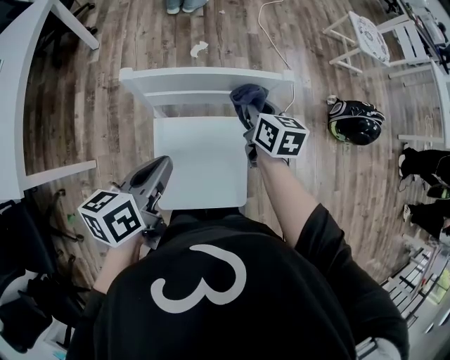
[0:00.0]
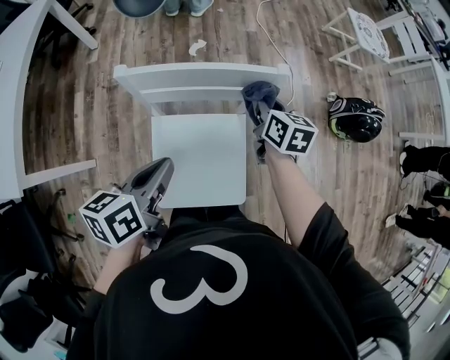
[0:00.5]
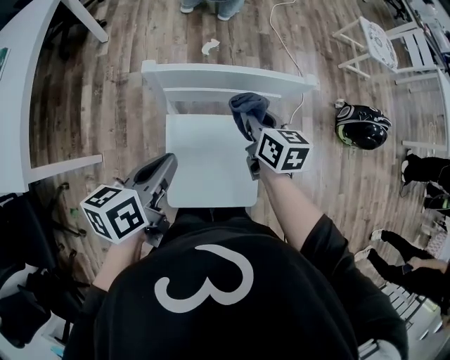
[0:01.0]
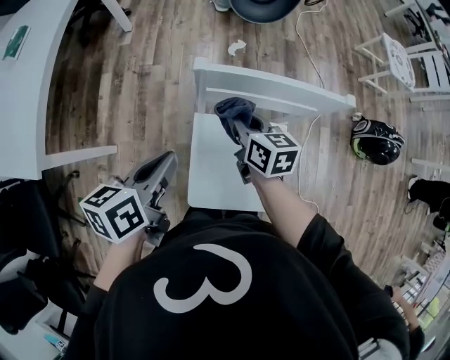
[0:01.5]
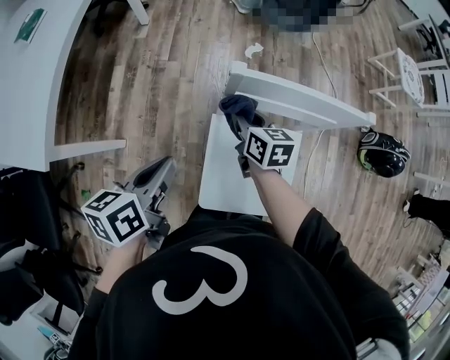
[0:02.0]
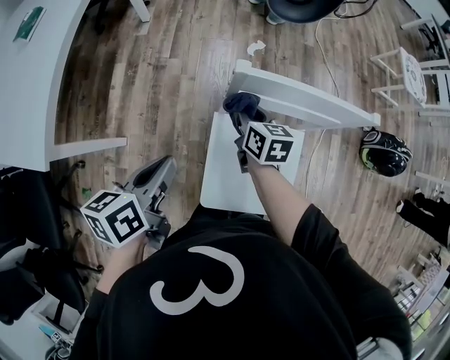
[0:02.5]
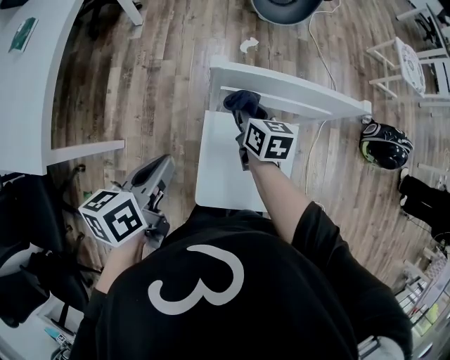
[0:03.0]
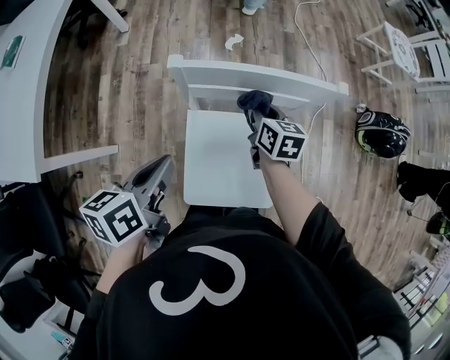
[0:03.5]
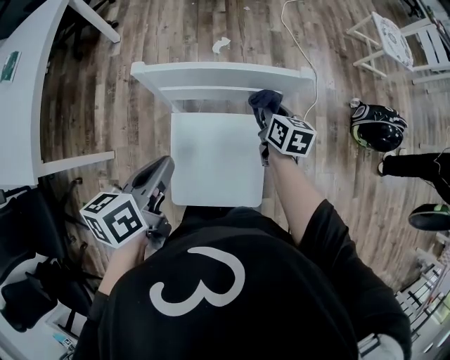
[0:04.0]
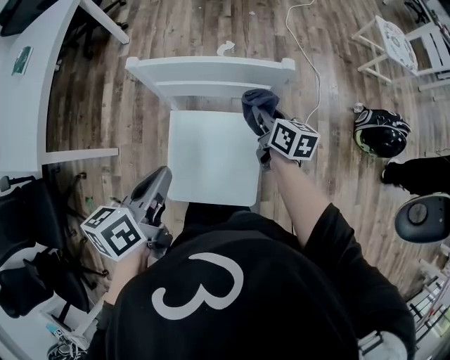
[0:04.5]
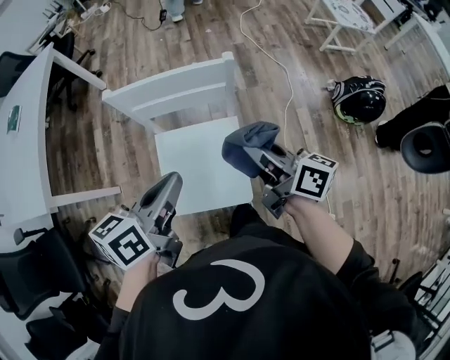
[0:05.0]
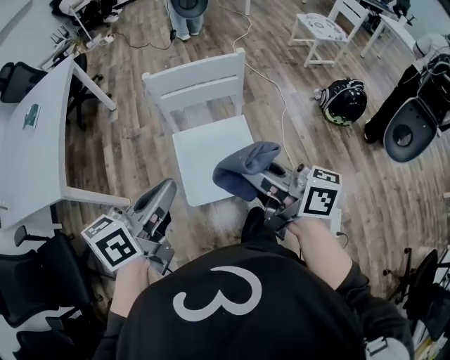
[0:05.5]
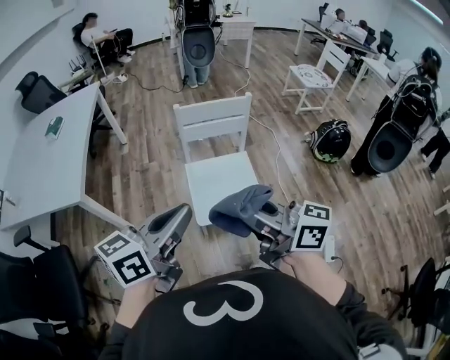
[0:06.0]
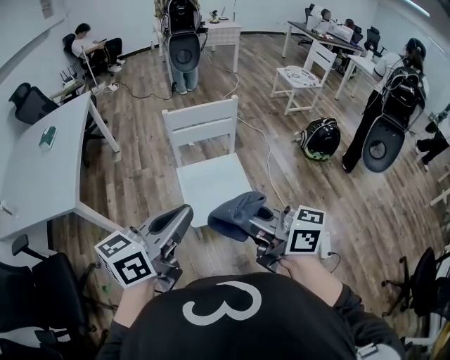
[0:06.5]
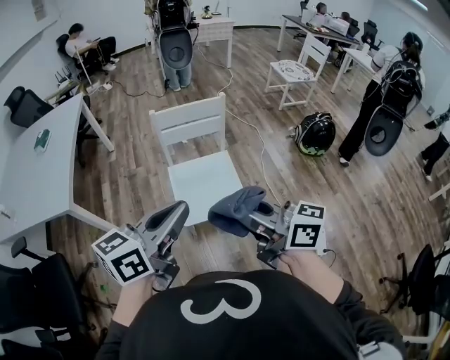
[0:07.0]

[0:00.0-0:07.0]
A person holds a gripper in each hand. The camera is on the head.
0:00.0 to 0:02.0: Both grippers move to the left, some 20 cm.
0:02.0 to 0:03.5: The left gripper goes about 10 cm to the right, while the right gripper shifts approximately 15 cm to the right.
0:03.5 to 0:05.0: The left gripper moves to the right and upward, roughly 20 cm. Meanwhile the right gripper moves upward, backward and to the right, roughly 30 cm, and changes its angle by approximately 40 degrees.
0:05.0 to 0:07.0: The right gripper travels backward, upward and to the left by roughly 40 cm, and changes its angle by roughly 20 degrees. Meanwhile the left gripper shifts some 35 cm backward and upward, and swivels about 30 degrees.

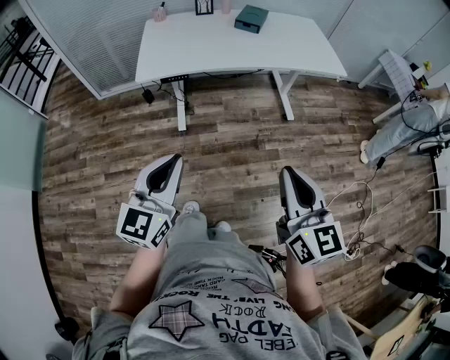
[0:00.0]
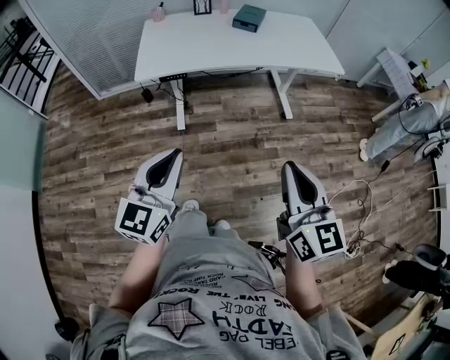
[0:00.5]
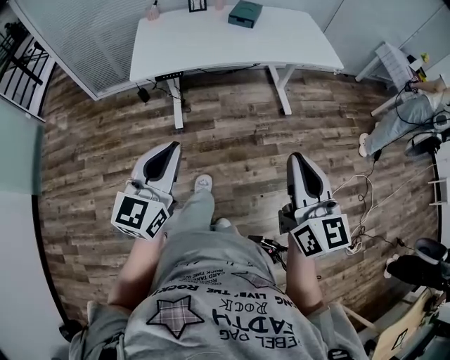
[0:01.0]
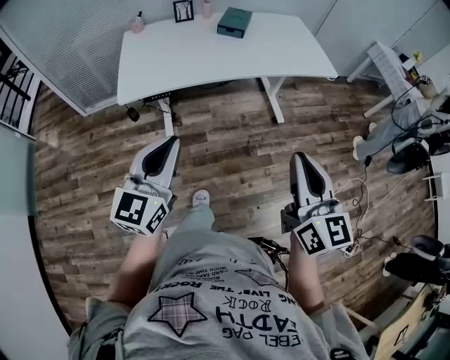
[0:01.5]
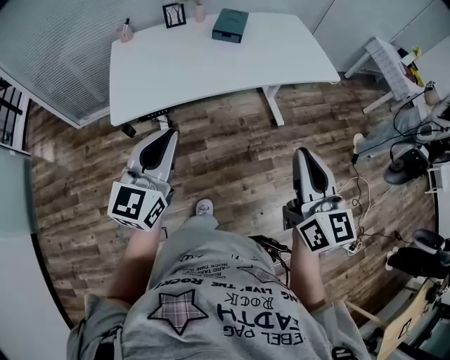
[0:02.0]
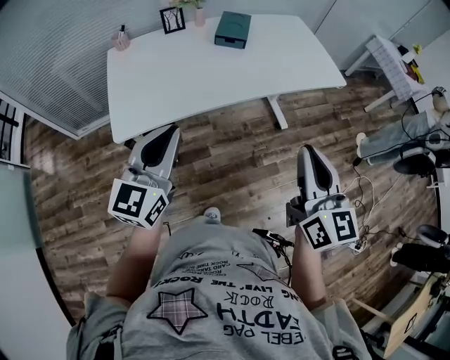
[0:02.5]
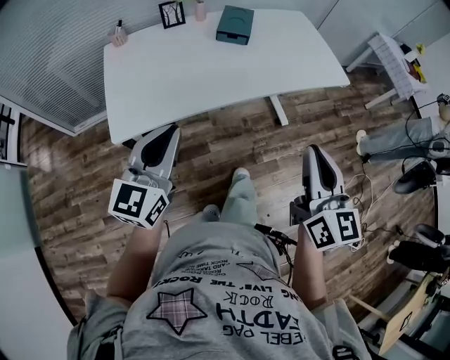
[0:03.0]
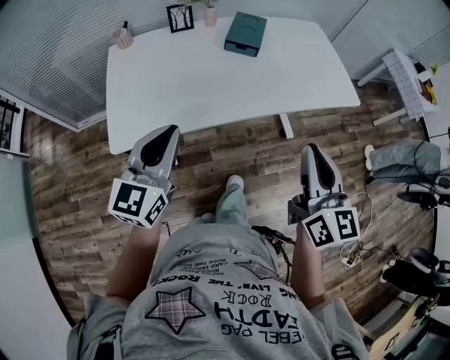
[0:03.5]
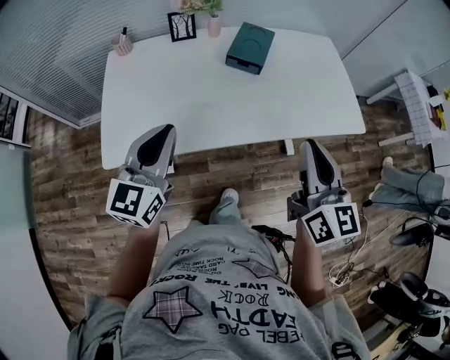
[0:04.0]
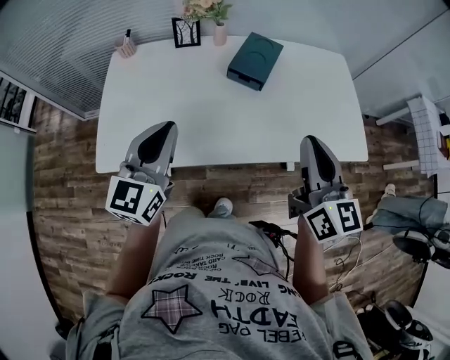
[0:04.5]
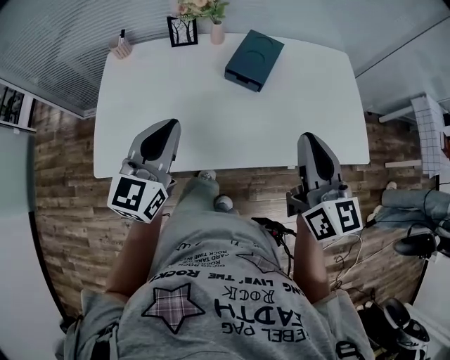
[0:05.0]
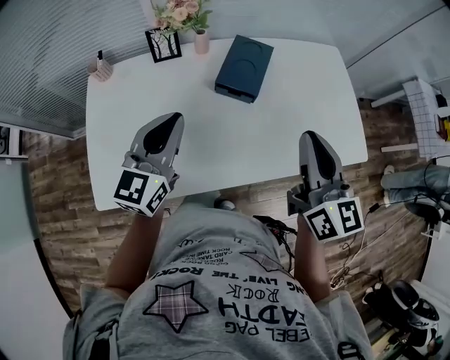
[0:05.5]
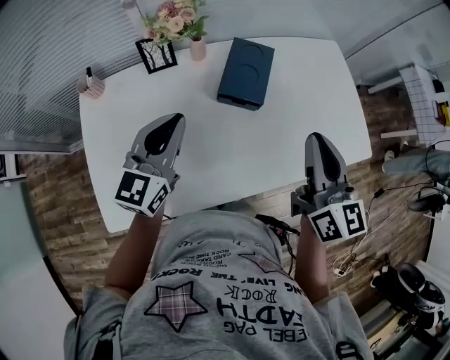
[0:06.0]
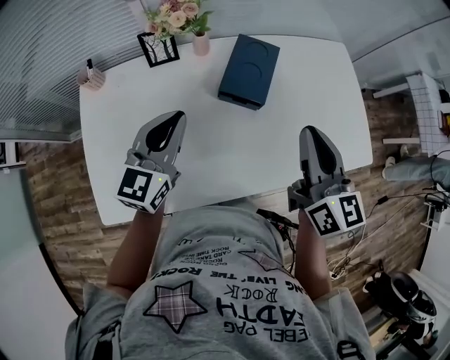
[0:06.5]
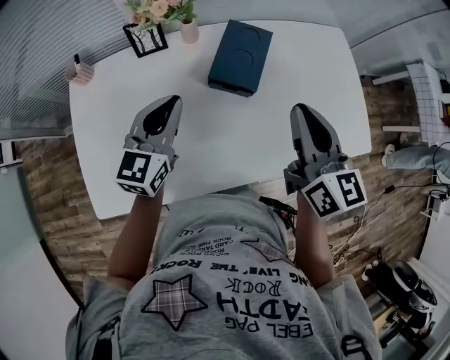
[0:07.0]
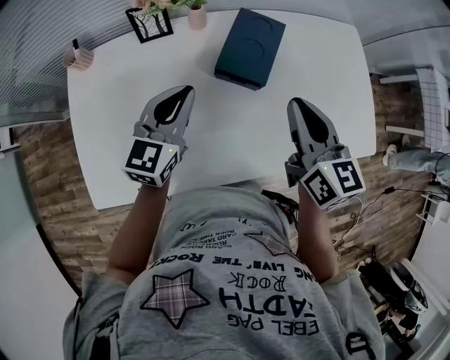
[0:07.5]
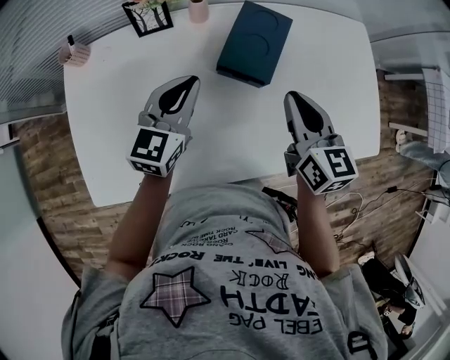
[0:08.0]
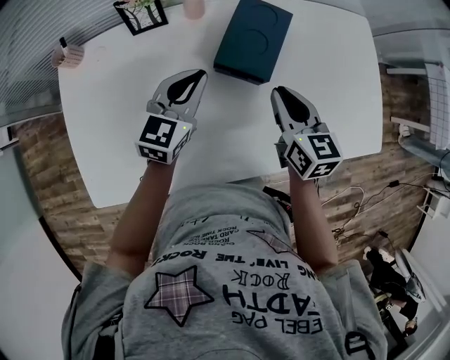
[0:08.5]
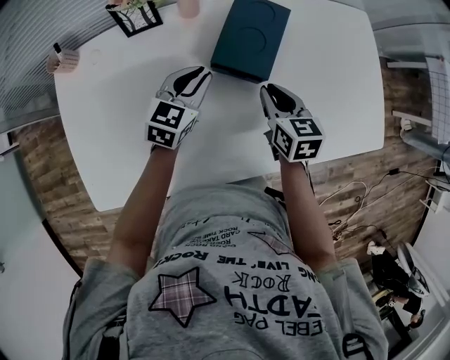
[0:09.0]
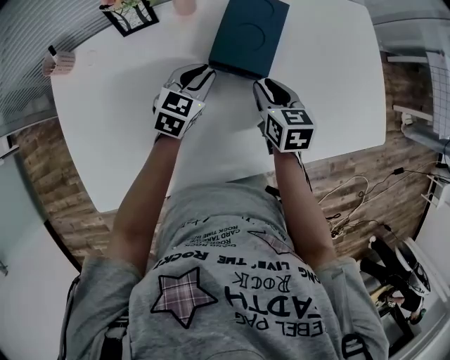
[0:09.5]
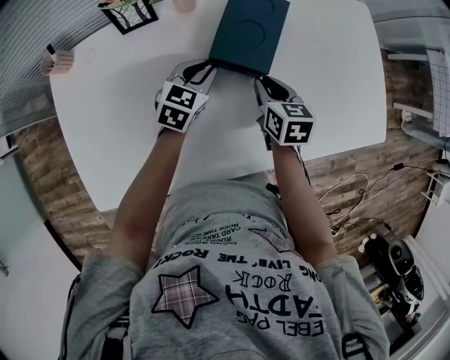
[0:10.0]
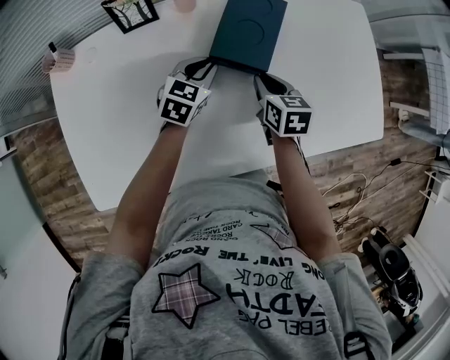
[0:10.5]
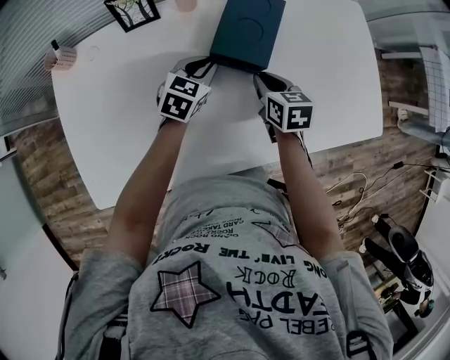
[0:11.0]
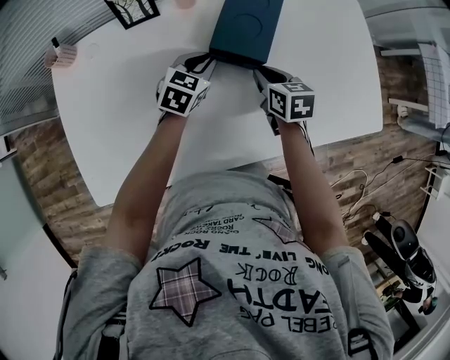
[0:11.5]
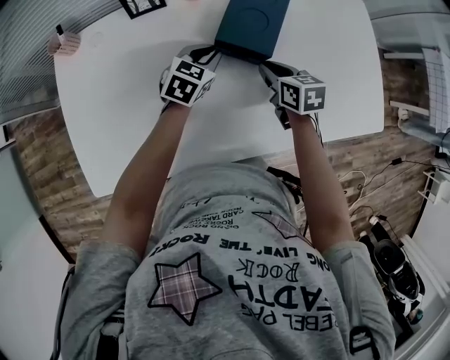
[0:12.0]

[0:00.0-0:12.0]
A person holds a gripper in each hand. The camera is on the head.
0:00.0 to 0:02.0: Both grippers move forward, about 20 cm.
0:02.0 to 0:04.0: Both grippers travel together forward, roughly 30 cm.
0:04.0 to 0:06.0: Both grippers travel together forward, roughly 25 cm.
0:06.0 to 0:08.0: Both grippers move downward and forward, roughly 15 cm. The right gripper changes its angle by about 20 degrees.
0:08.0 to 0:10.0: Both grippers travel together downward, some 15 cm. The left gripper changes its angle by about 20 degrees; the right gripper swivels roughly 20 degrees.
0:10.0 to 0:12.0: There are only small adjustments of the grippers.

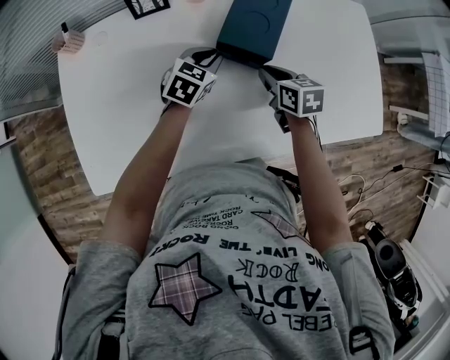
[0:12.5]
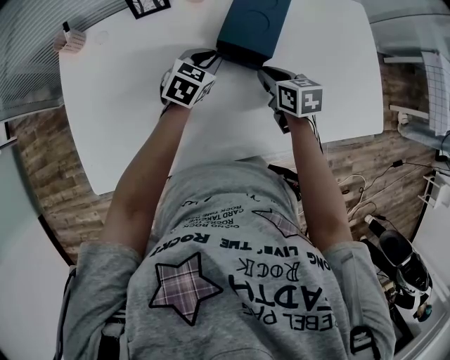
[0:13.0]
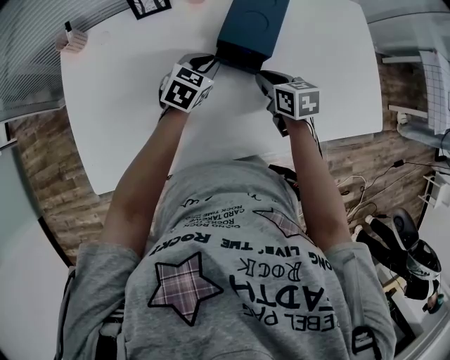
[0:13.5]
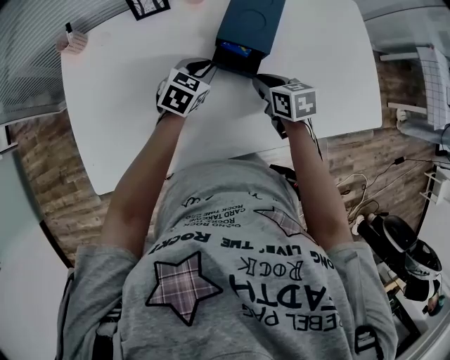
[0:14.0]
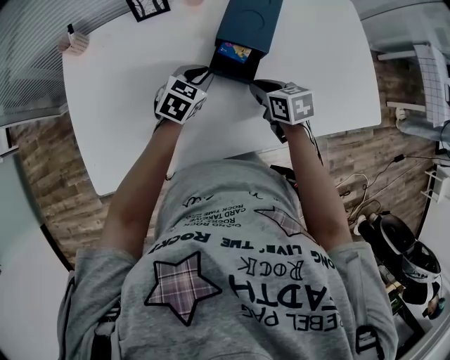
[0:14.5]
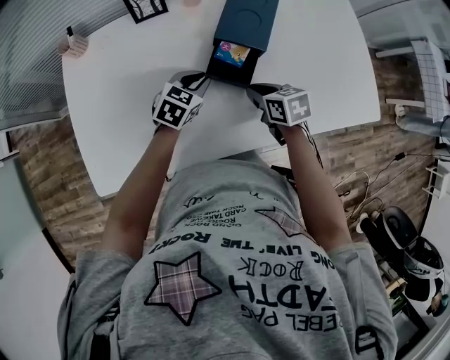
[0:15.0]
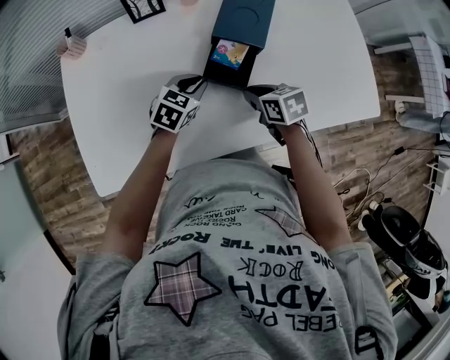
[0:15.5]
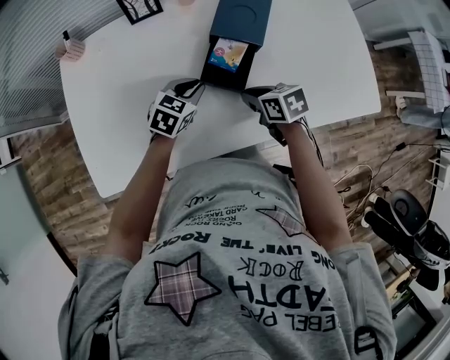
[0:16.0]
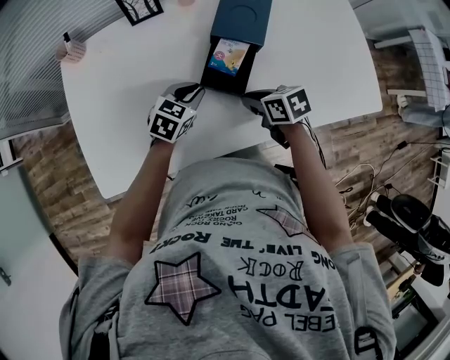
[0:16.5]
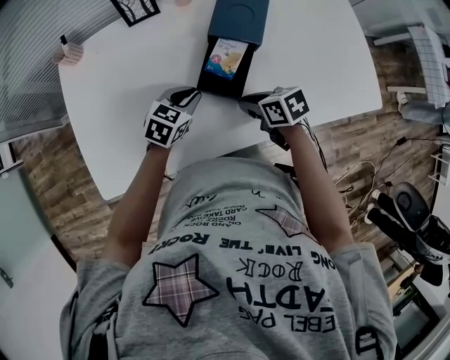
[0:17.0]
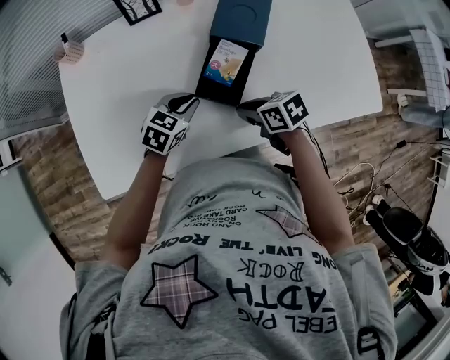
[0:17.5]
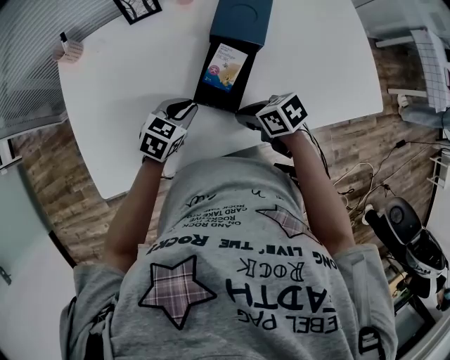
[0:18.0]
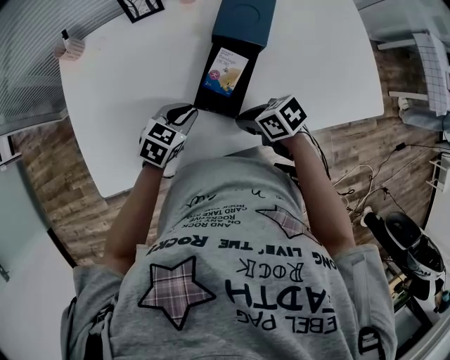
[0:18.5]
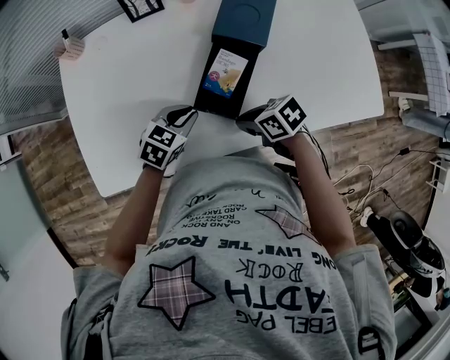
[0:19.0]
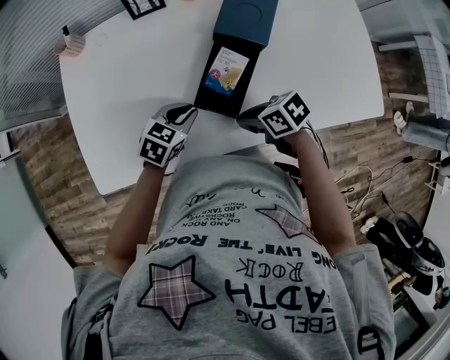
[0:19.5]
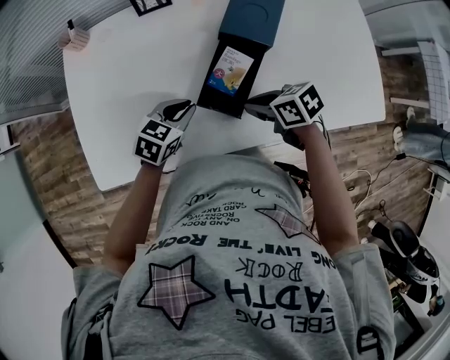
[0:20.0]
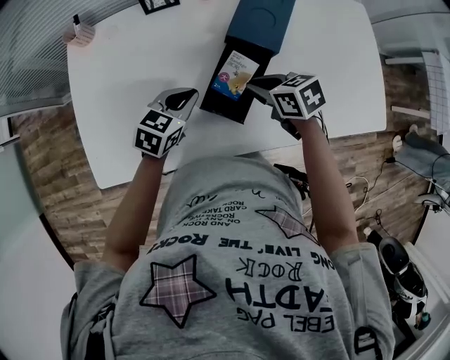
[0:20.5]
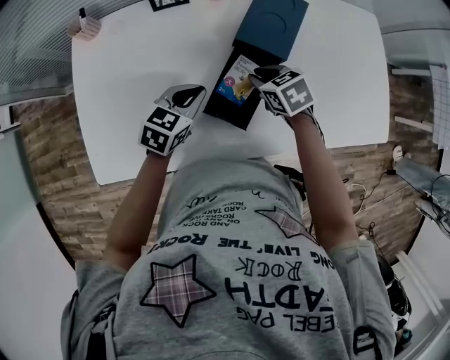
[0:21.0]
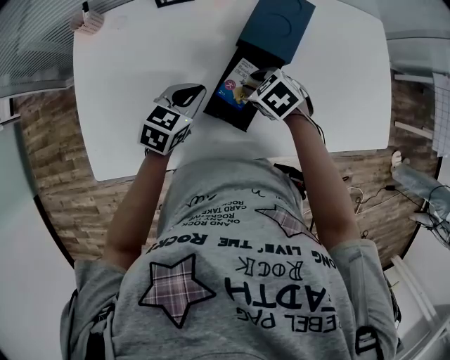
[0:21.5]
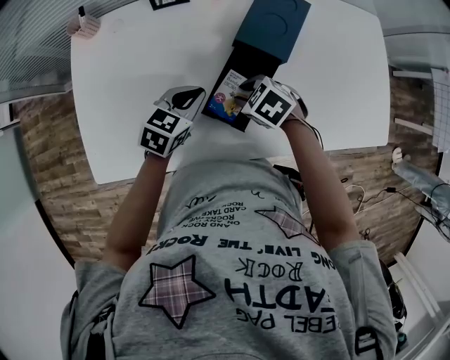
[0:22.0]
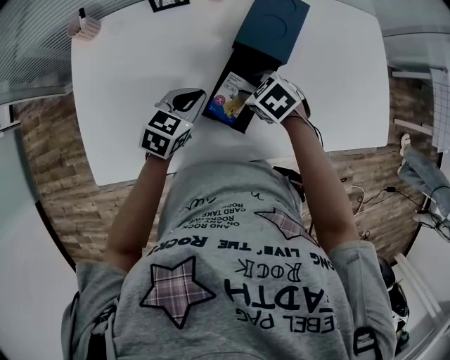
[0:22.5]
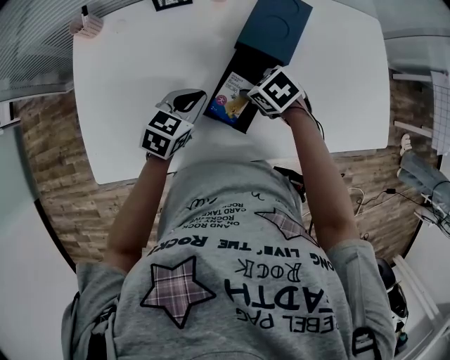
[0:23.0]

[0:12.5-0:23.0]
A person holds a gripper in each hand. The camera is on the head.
0:12.5 to 0:14.5: Both grippers travel together backward, about 5 cm.
0:14.5 to 0:16.5: The grippers both shift backward by roughly 5 cm.
0:16.5 to 0:19.0: The right gripper changes place by some 5 cm. The left gripper changes place by some 5 cm.
0:19.0 to 0:21.0: The right gripper changes place by about 15 cm, and swivels approximately 30 degrees. The left gripper changes place by about 10 cm.
0:21.0 to 0:23.0: The right gripper shifts by about 5 cm, and opens up.
